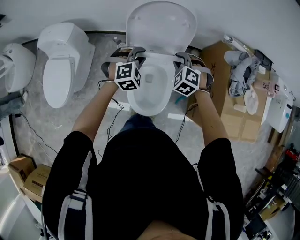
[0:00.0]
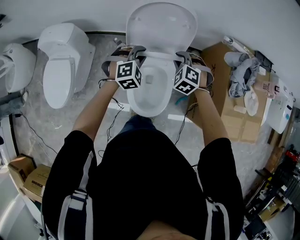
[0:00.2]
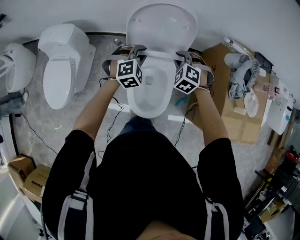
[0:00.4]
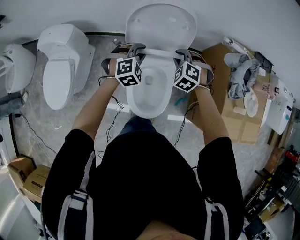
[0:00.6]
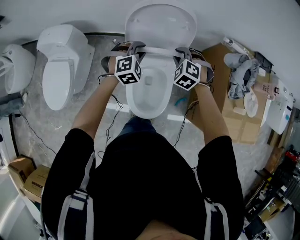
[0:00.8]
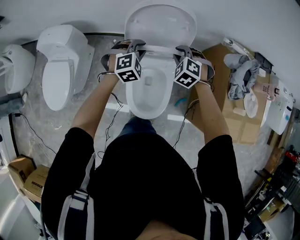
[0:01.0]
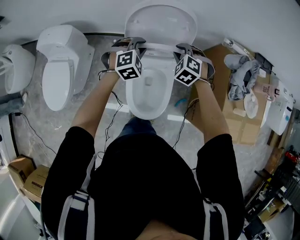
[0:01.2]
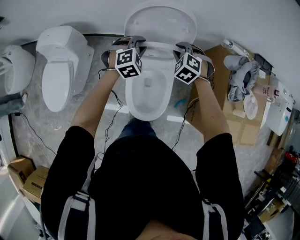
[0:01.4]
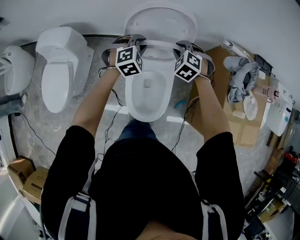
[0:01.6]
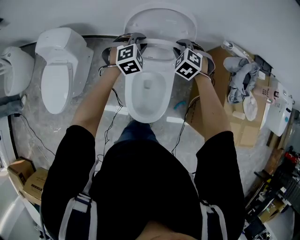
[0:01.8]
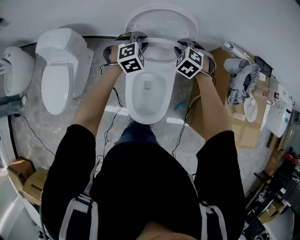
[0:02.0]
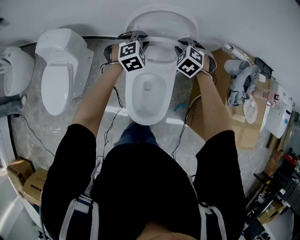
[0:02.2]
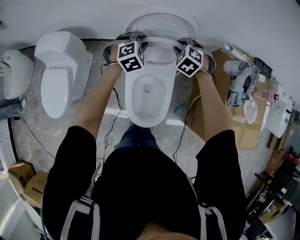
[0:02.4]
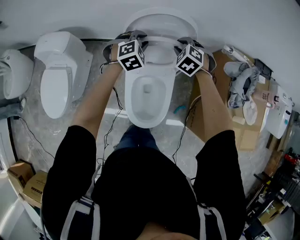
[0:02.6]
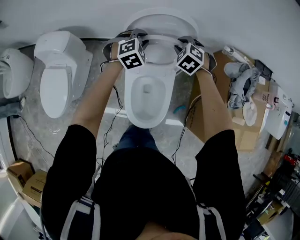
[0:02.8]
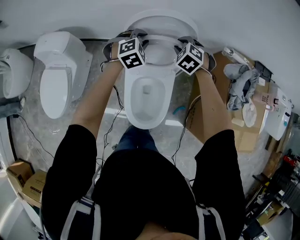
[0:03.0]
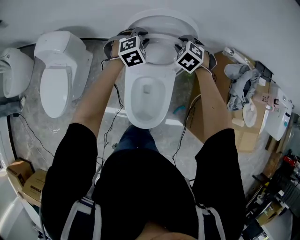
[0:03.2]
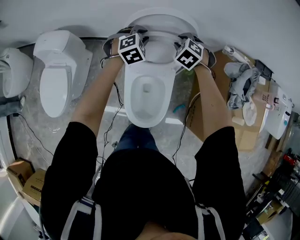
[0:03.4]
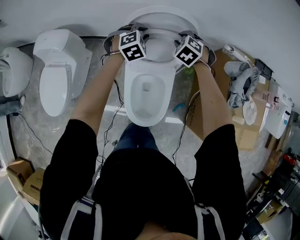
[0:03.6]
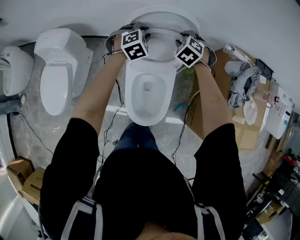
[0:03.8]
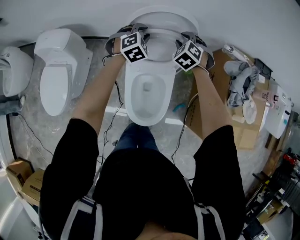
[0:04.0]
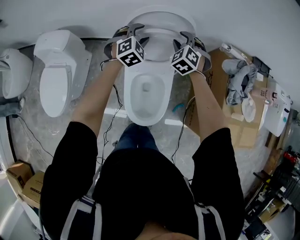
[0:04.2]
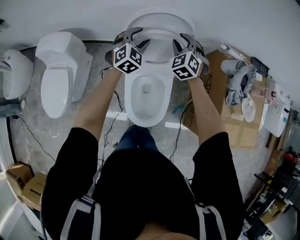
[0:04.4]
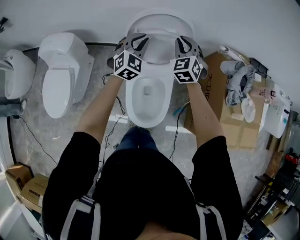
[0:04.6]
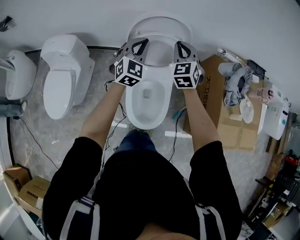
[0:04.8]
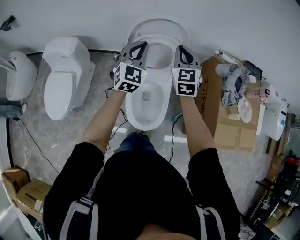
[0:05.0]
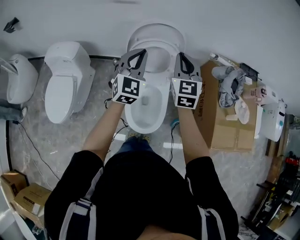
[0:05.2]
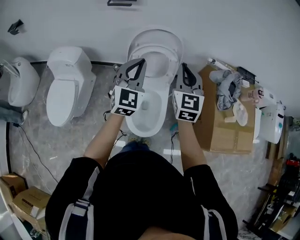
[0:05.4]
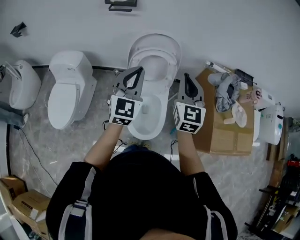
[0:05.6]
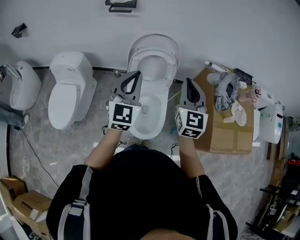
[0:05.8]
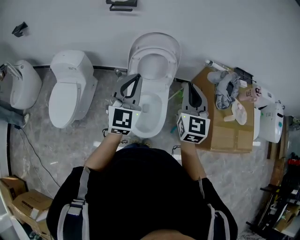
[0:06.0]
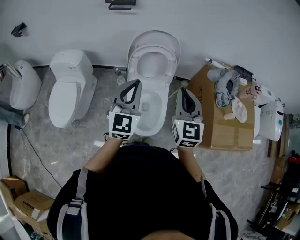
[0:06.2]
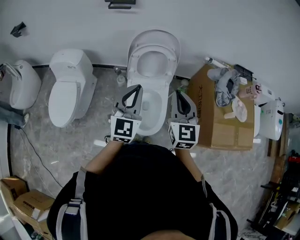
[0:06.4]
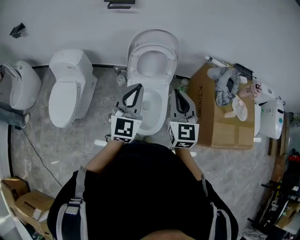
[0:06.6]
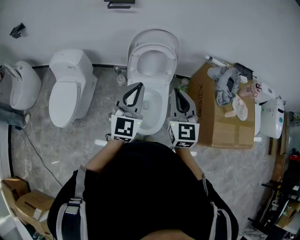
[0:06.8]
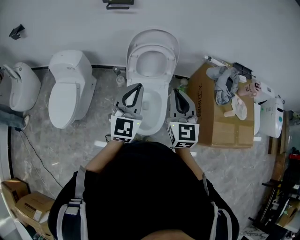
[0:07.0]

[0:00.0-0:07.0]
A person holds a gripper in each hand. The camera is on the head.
0:00.0 to 0:01.4: The grippers both shift forward by approximately 5 cm.
0:01.4 to 0:02.8: Both grippers move forward, roughly 5 cm.
0:02.8 to 0:04.2: The left gripper opens its fingers.
0:04.2 to 0:05.6: The grippers both shift backward and upward by roughly 35 cm. The right gripper points its fingers approximately 40 degrees further upward, and closes. Meanwhile the left gripper points its fingers some 40 degrees further upward, and closes up.
0:05.6 to 0:07.0: Both grippers move backward, about 10 cm.

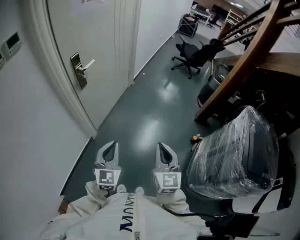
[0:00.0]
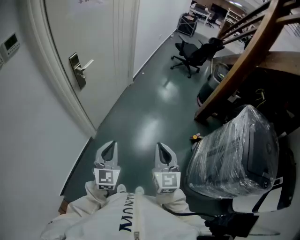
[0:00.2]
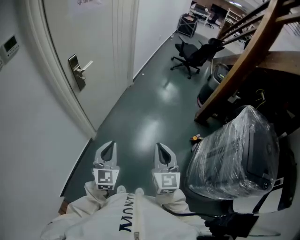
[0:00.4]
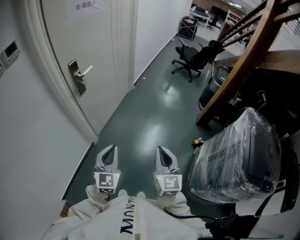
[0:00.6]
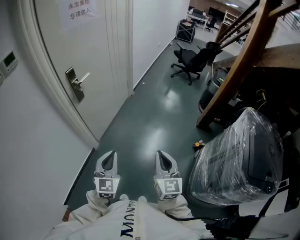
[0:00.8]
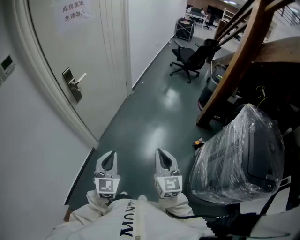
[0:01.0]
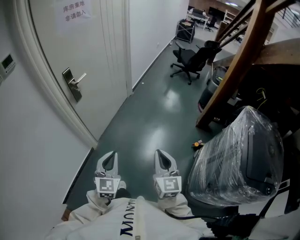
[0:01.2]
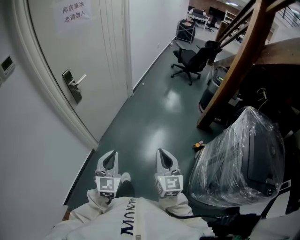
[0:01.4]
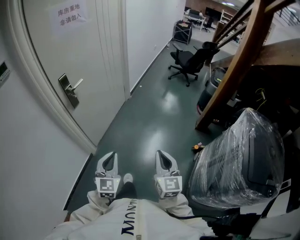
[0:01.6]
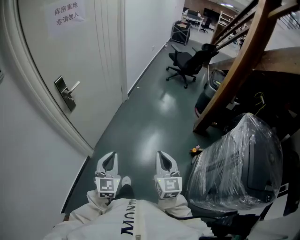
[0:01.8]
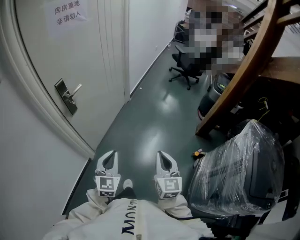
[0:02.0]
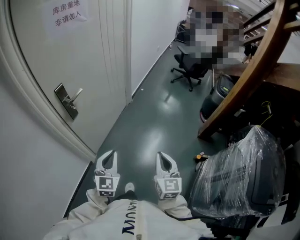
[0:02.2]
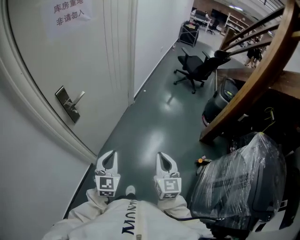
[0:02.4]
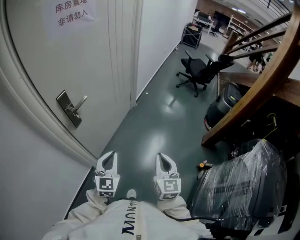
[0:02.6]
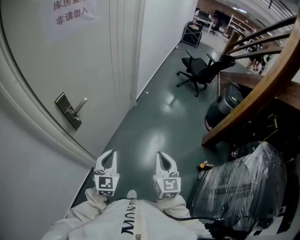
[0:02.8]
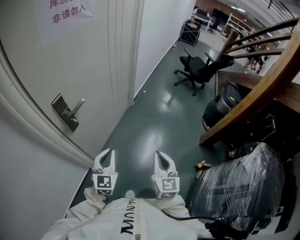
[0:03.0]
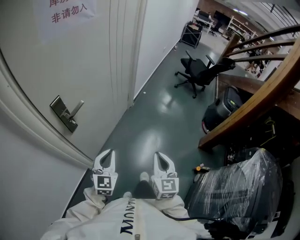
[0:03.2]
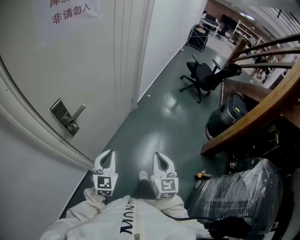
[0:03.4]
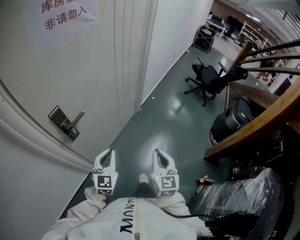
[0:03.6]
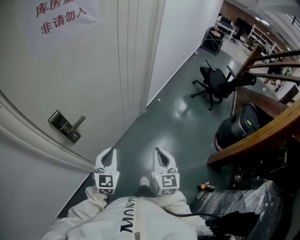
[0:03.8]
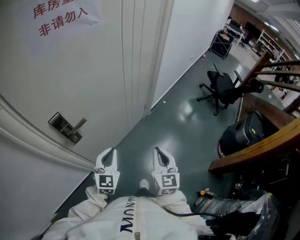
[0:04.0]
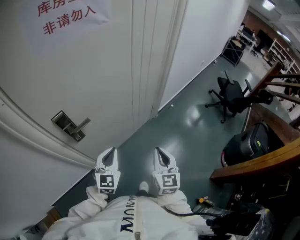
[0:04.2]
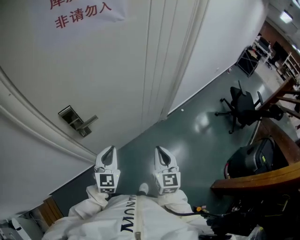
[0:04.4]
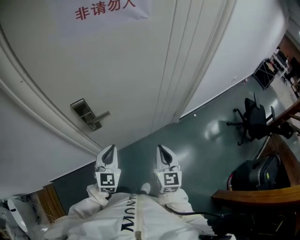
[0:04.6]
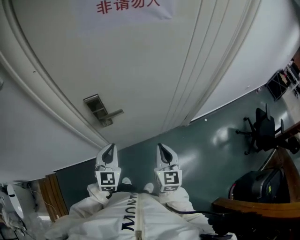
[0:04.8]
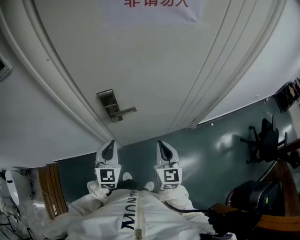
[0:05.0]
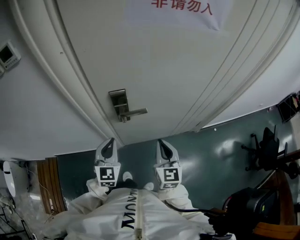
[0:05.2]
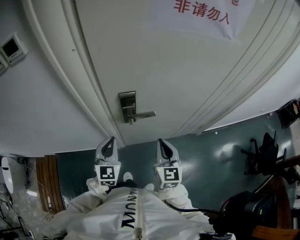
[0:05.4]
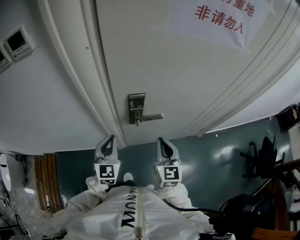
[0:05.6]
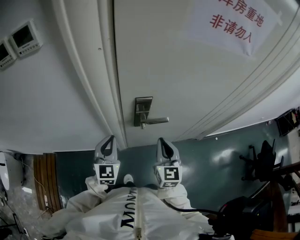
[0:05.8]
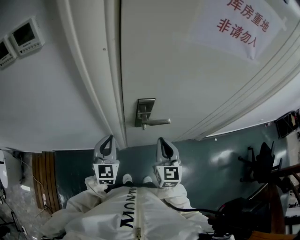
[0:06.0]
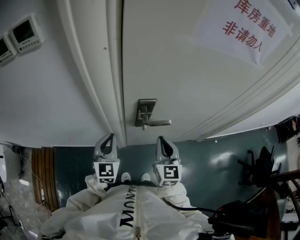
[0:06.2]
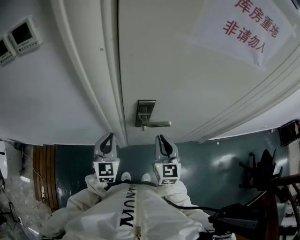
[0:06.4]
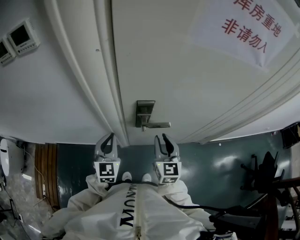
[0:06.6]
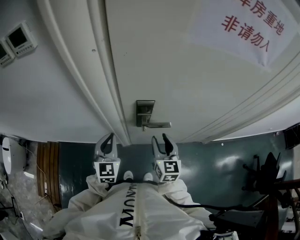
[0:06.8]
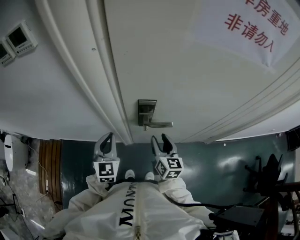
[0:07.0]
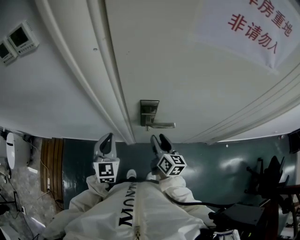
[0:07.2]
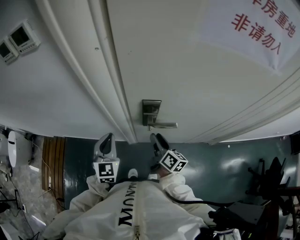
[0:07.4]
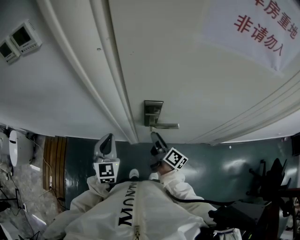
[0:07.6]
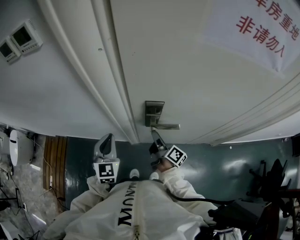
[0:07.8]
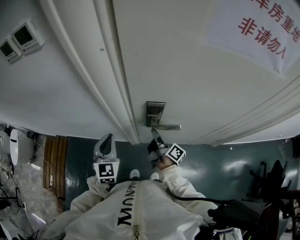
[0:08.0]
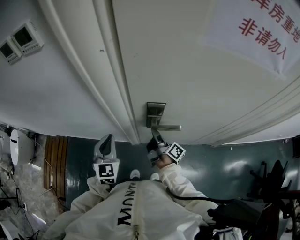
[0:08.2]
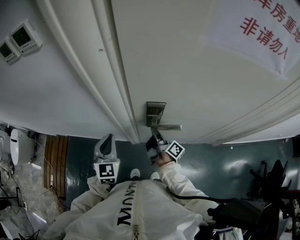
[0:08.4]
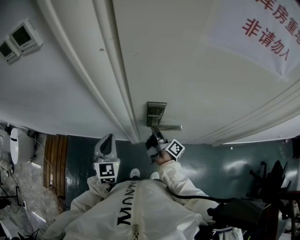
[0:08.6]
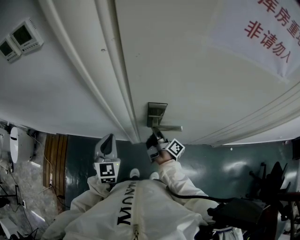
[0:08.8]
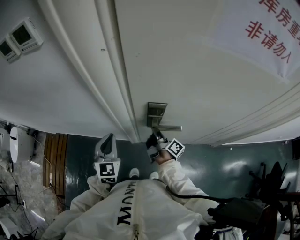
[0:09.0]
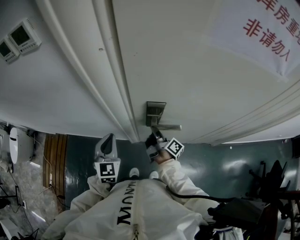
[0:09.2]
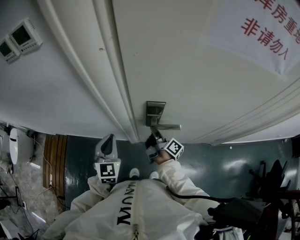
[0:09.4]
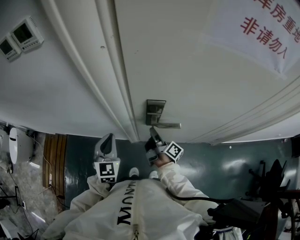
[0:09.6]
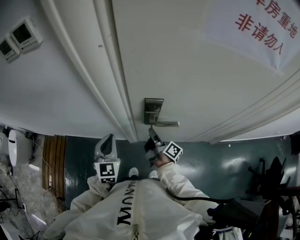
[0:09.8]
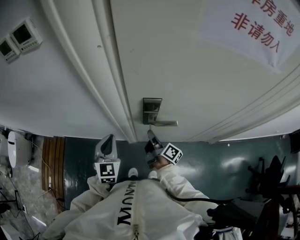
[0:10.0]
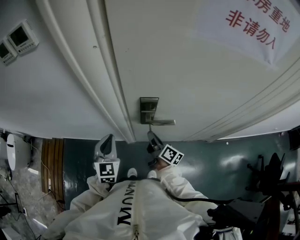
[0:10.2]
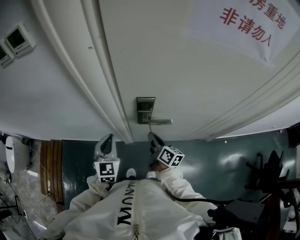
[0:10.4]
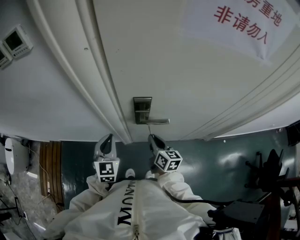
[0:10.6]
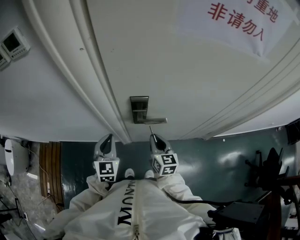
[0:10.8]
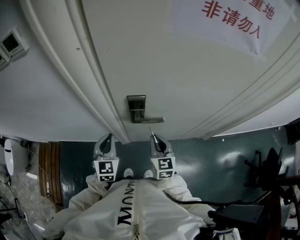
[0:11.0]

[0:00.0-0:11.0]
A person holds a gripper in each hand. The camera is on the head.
0:00.0 to 0:01.6: Both grippers move to the right, roughly 5 cm.
0:01.6 to 0:03.2: Both grippers travel together forward, roughly 30 cm.
0:03.2 to 0:04.8: The left gripper changes place by about 15 cm, and turns by some 40 degrees. The right gripper ends up some 25 cm from where it was, and rotates about 40 degrees.
0:04.8 to 0:06.2: The left gripper travels to the left by approximately 20 cm; the right gripper moves to the left and forward, roughly 20 cm.
0:06.2 to 0:07.8: The right gripper travels downward and forward by some 15 cm, twists approximately 80 degrees clockwise, seen from behind, and opens up.
0:07.8 to 0:09.4: The right gripper closes.
0:09.4 to 0:11.0: The right gripper goes roughly 10 cm backward and upward, and rotates around the line of its fingers by about 80 degrees, counterclockwise from behind. The left gripper travels to the right by approximately 5 cm.

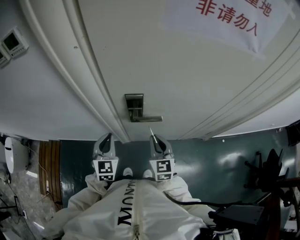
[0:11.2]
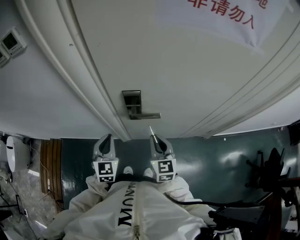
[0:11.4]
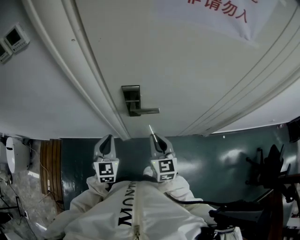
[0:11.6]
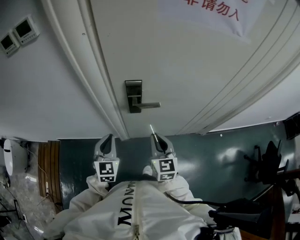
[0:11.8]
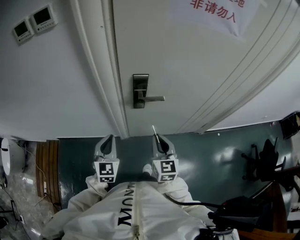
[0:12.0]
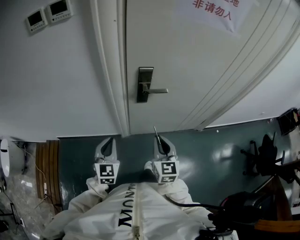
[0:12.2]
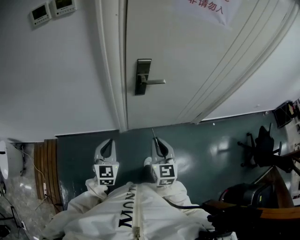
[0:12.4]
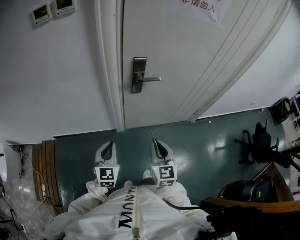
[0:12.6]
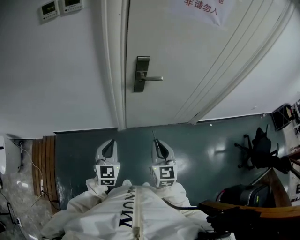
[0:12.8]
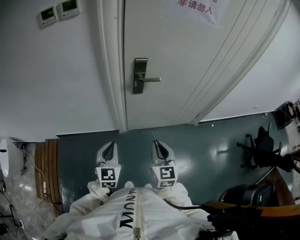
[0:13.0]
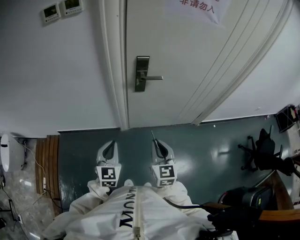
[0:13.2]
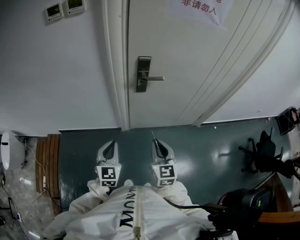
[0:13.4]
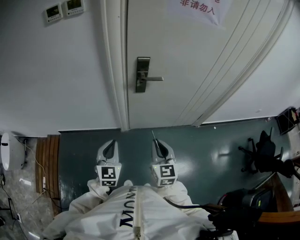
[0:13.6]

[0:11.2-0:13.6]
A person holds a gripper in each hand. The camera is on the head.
0:11.2 to 0:12.4: The grippers both shift backward by about 20 cm.
0:12.4 to 0:13.6: Both grippers move backward, some 5 cm.

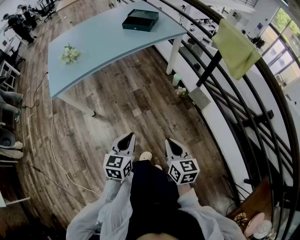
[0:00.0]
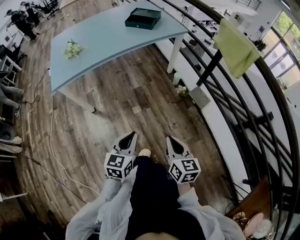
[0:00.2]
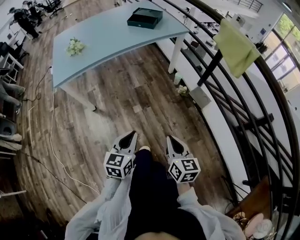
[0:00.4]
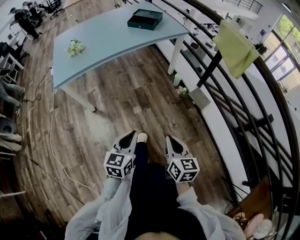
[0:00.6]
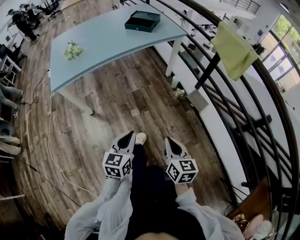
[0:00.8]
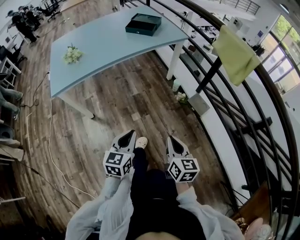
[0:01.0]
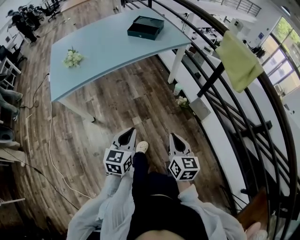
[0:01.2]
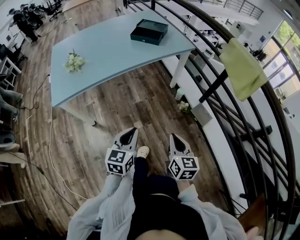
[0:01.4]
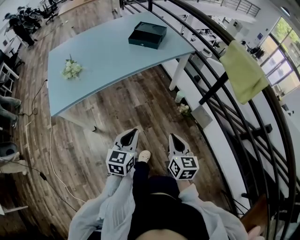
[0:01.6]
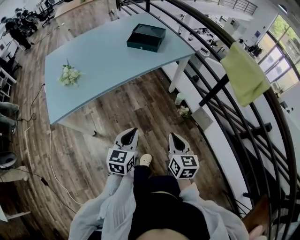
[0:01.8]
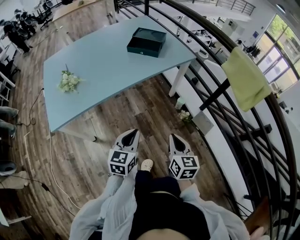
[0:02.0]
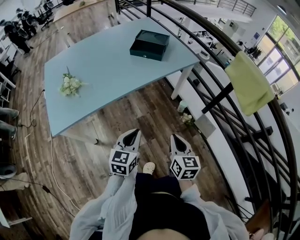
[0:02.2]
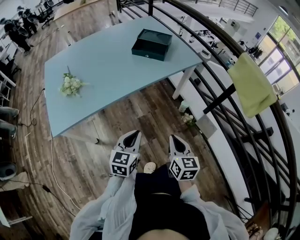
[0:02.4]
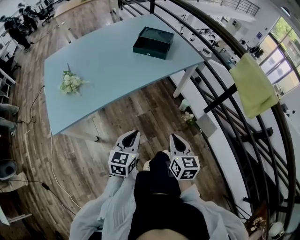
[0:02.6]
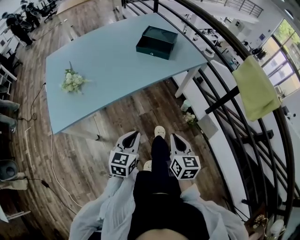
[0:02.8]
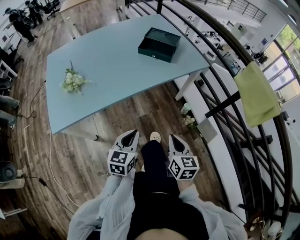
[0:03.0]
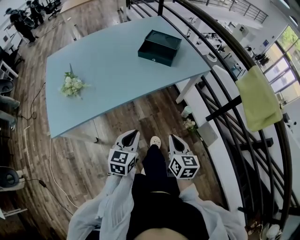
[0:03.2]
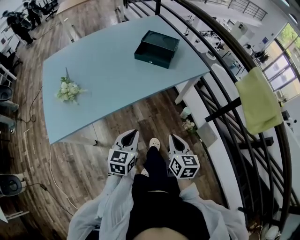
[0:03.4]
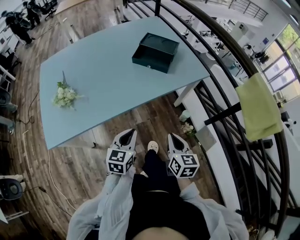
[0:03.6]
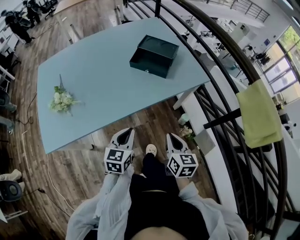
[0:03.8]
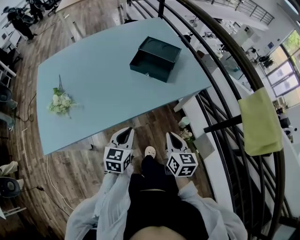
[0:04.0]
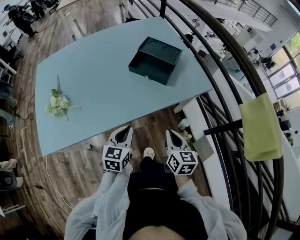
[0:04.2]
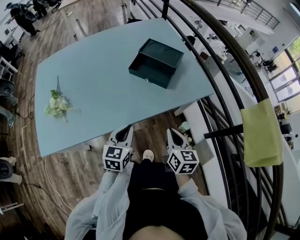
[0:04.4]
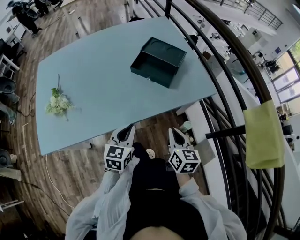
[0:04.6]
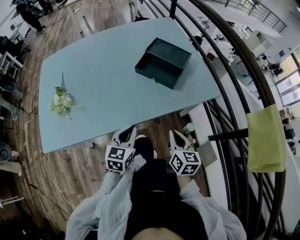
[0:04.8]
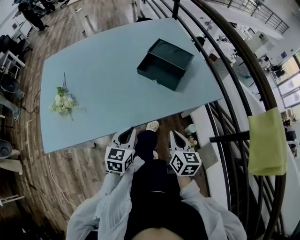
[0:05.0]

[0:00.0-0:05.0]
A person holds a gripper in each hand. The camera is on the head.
0:00.0 to 0:01.6: The two grippers go approximately 15 cm forward.
0:01.6 to 0:03.4: Both grippers move forward, roughly 20 cm.
0:03.4 to 0:05.0: The two grippers go roughly 15 cm forward.
